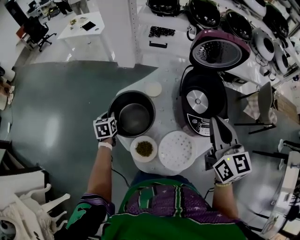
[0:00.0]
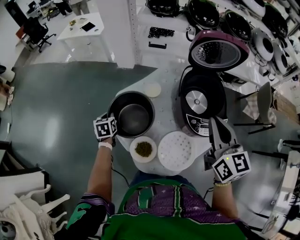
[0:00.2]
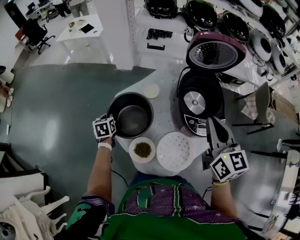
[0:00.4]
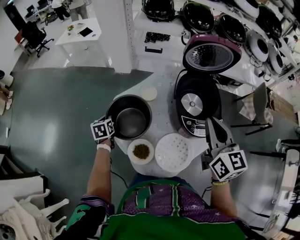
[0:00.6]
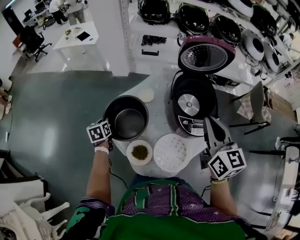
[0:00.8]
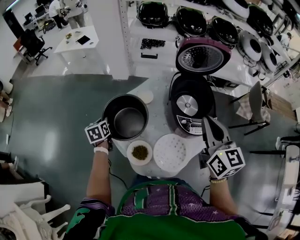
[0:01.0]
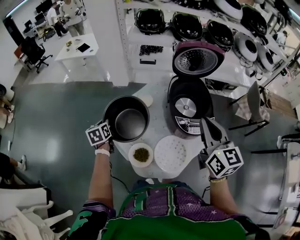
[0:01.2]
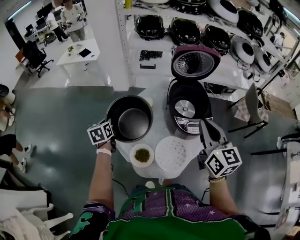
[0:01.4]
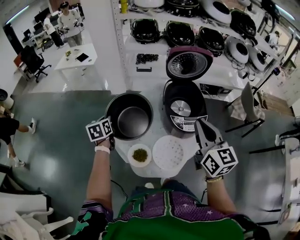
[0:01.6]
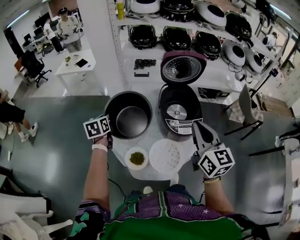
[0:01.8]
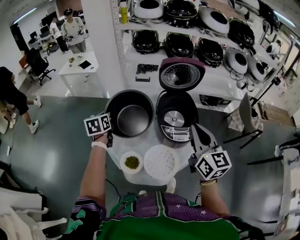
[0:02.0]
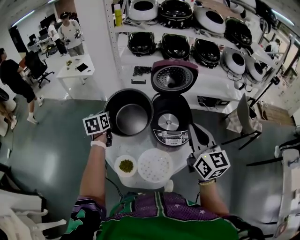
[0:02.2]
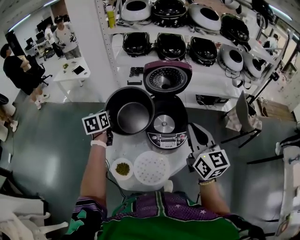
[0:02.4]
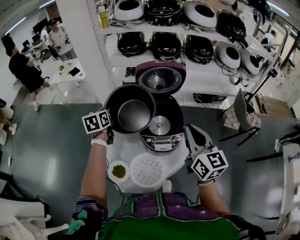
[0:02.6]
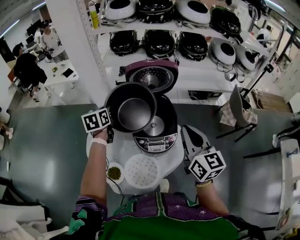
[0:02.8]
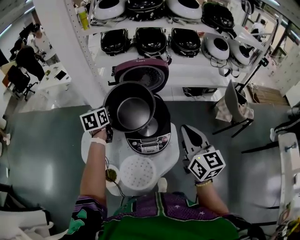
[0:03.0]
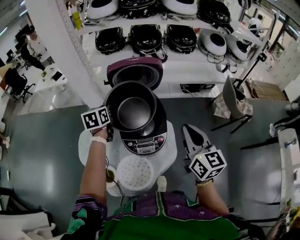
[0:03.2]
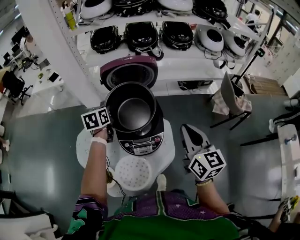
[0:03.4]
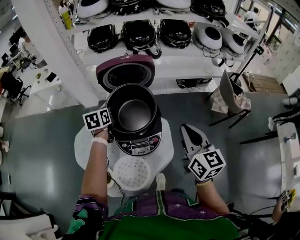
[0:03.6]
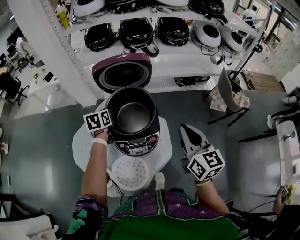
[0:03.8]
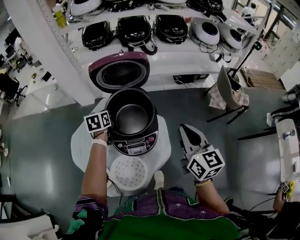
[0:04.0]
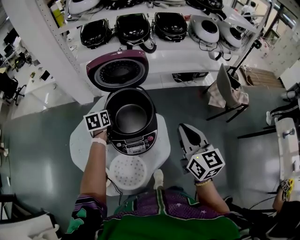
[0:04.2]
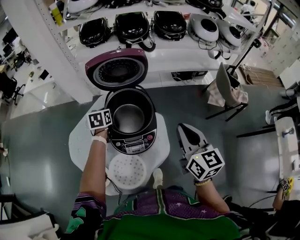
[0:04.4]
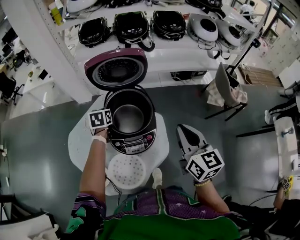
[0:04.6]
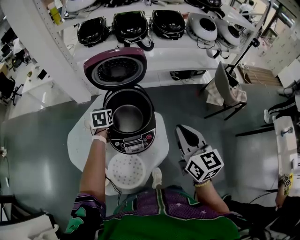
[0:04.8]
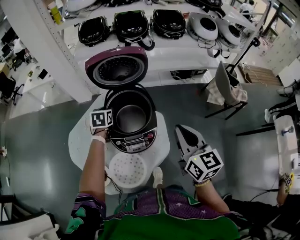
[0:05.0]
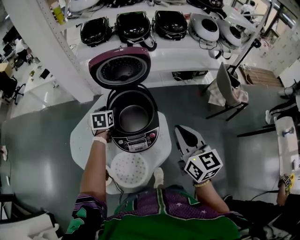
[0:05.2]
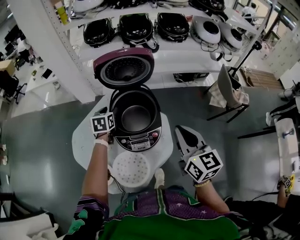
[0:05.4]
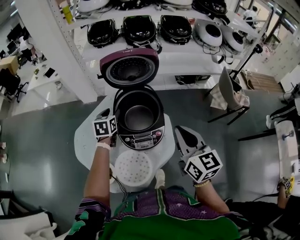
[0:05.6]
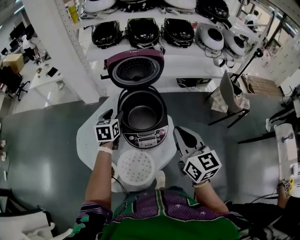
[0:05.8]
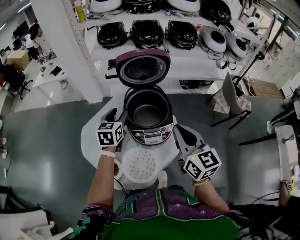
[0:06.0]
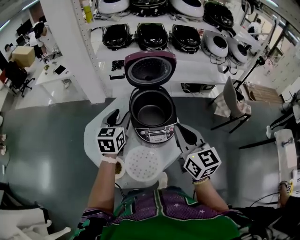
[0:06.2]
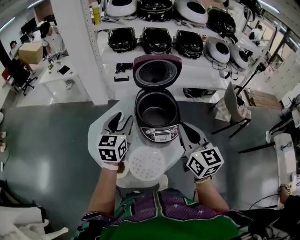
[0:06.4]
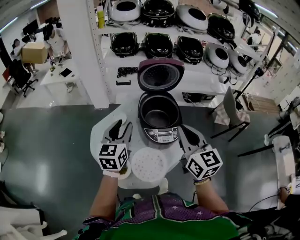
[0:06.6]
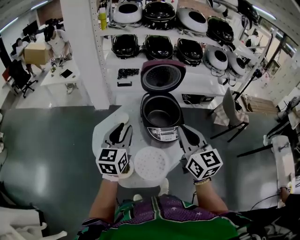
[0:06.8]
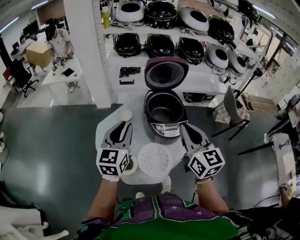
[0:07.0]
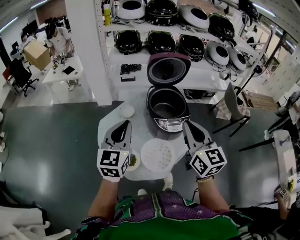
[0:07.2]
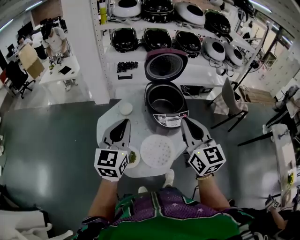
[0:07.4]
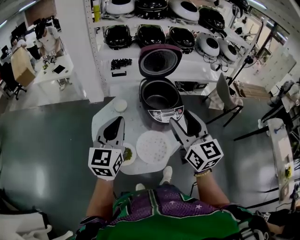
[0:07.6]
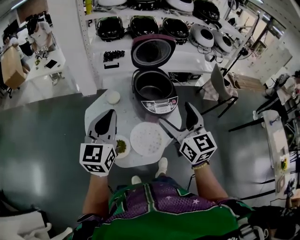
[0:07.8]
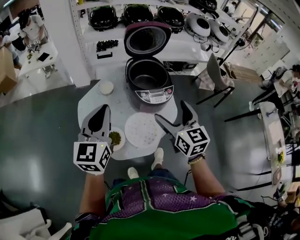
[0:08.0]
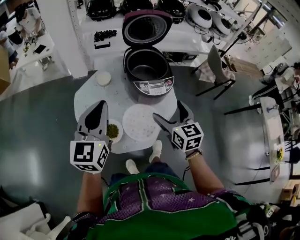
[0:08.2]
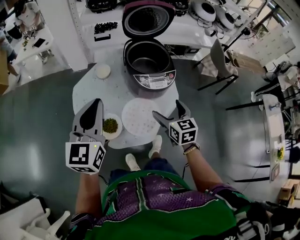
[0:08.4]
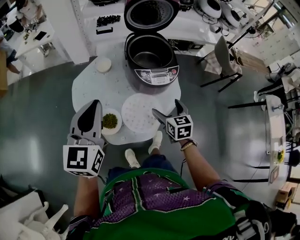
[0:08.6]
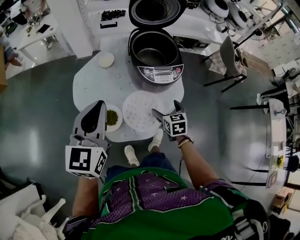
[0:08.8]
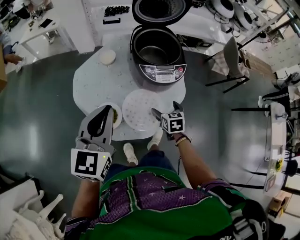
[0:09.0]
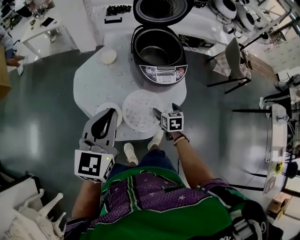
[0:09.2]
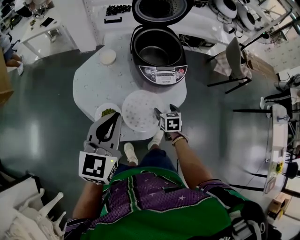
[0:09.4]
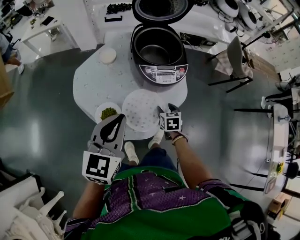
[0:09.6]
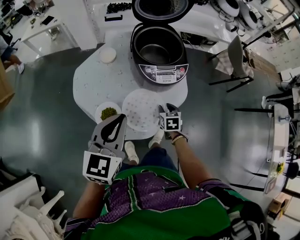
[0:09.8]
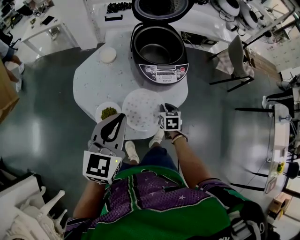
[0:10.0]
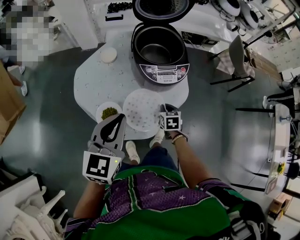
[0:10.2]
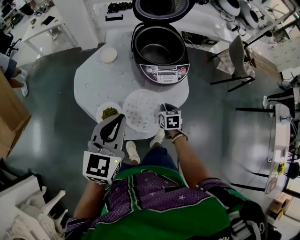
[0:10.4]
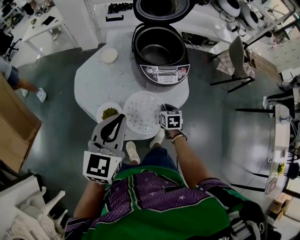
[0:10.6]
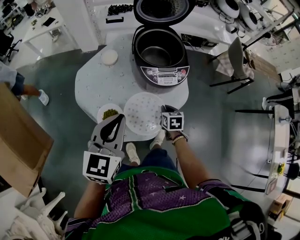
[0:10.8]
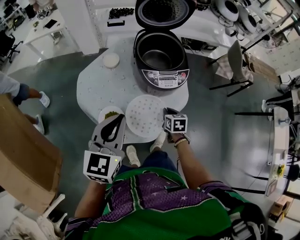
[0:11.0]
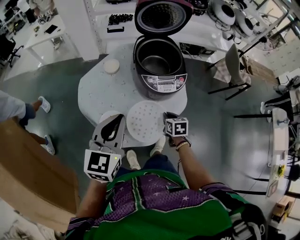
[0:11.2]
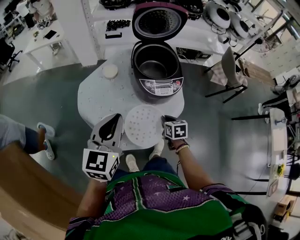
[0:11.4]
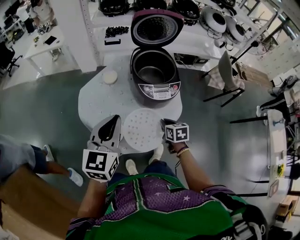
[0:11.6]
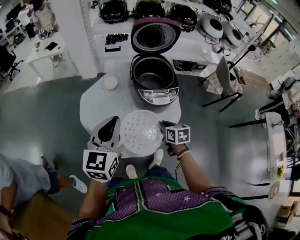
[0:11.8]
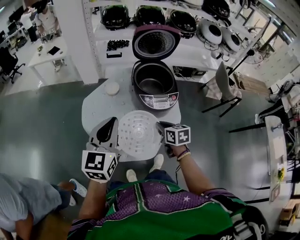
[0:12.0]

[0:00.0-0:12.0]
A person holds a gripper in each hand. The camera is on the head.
0:00.0 to 0:01.6: The right gripper travels backward by approximately 10 cm. Meanwhile the left gripper heads upward, covering approximately 15 cm.
0:01.6 to 0:03.0: The right gripper heads to the right, covering some 20 cm, while the left gripper is displaced to the right and forward by some 30 cm.
0:03.0 to 0:04.4: The right gripper moves to the right, some 5 cm. Meanwhile the left gripper heads downward and to the right, covering about 15 cm.
0:04.4 to 0:06.0: The left gripper shifts about 15 cm backward and upward, and opens, while the right gripper heads to the left, covering approximately 10 cm.
0:06.0 to 0:07.6: The left gripper travels backward, upward and to the left by some 30 cm, rotates approximately 30 degrees, and closes, while the right gripper heads to the left, backward and upward, covering roughly 20 cm, and opens.
0:07.6 to 0:09.0: The left gripper is displaced downward by roughly 10 cm; the right gripper goes roughly 40 cm downward, points its fingers about 40 degrees further downward, and opens up.
0:09.0 to 0:10.4: The right gripper travels downward by about 5 cm, and closes its fingers. Meanwhile the left gripper ends up some 5 cm from where it was.
0:10.4 to 0:12.0: The left gripper goes roughly 10 cm upward, while the right gripper shifts approximately 15 cm upward.

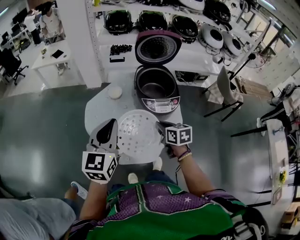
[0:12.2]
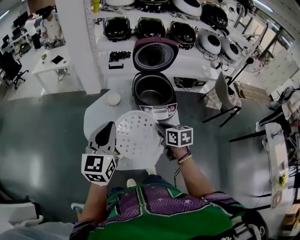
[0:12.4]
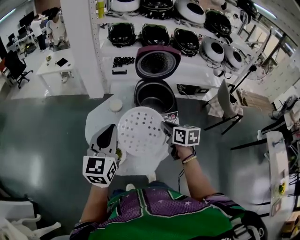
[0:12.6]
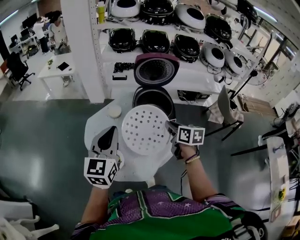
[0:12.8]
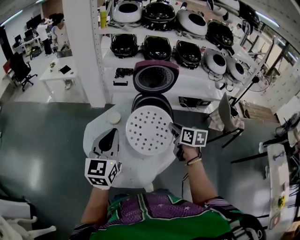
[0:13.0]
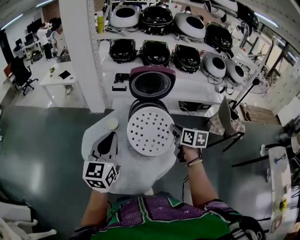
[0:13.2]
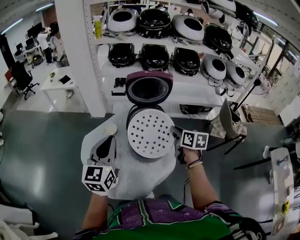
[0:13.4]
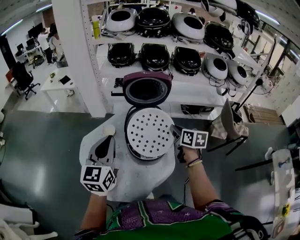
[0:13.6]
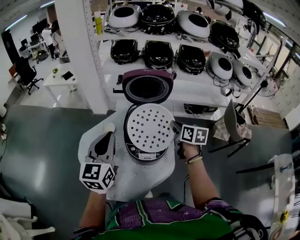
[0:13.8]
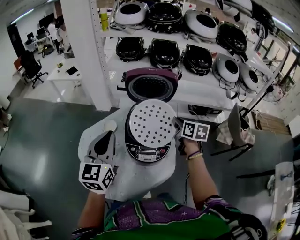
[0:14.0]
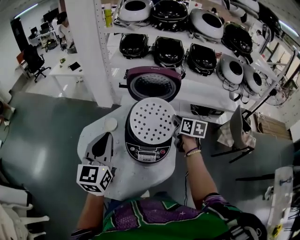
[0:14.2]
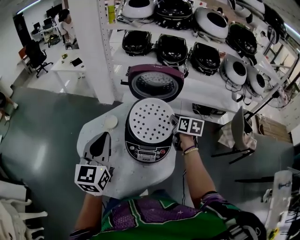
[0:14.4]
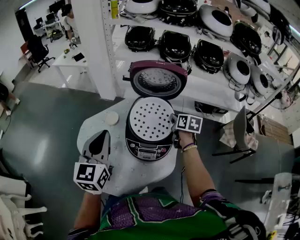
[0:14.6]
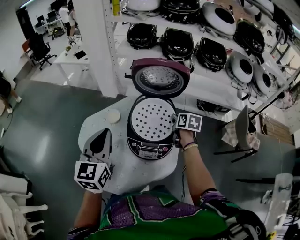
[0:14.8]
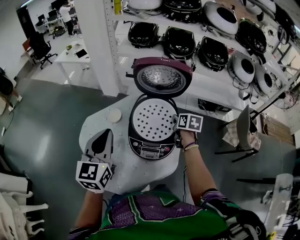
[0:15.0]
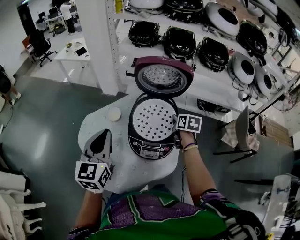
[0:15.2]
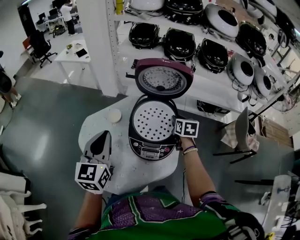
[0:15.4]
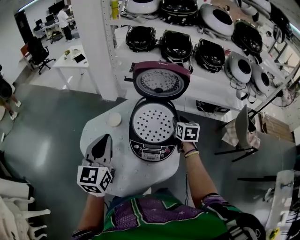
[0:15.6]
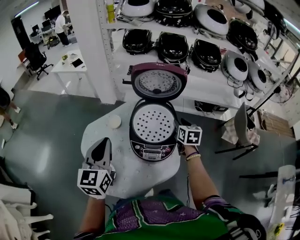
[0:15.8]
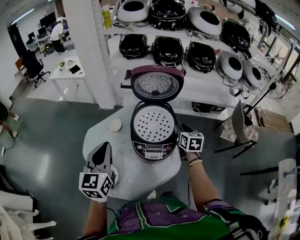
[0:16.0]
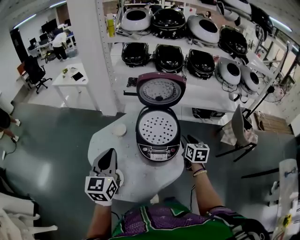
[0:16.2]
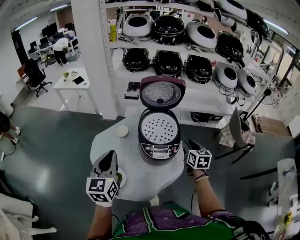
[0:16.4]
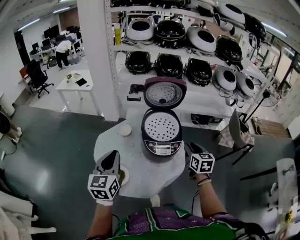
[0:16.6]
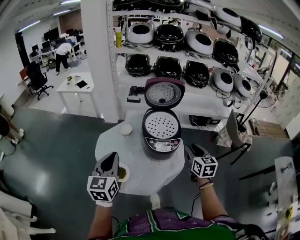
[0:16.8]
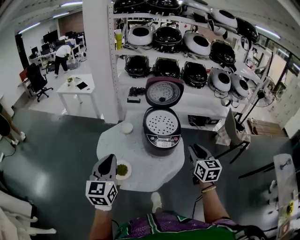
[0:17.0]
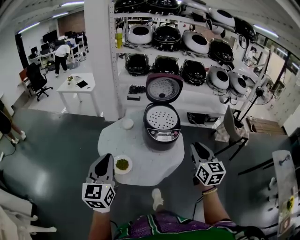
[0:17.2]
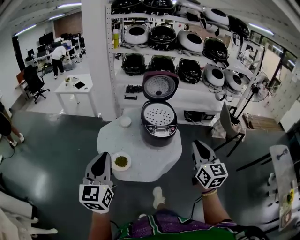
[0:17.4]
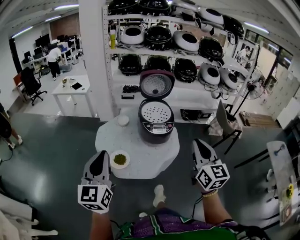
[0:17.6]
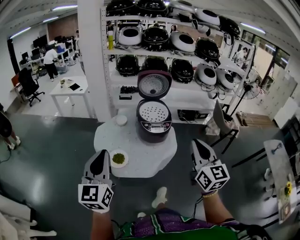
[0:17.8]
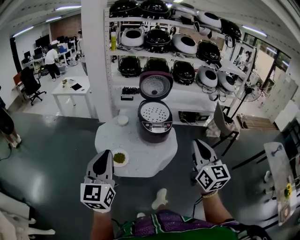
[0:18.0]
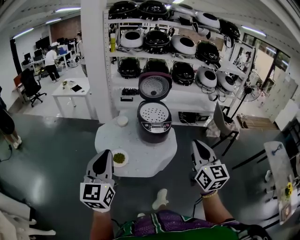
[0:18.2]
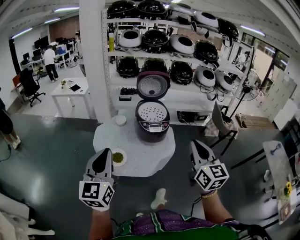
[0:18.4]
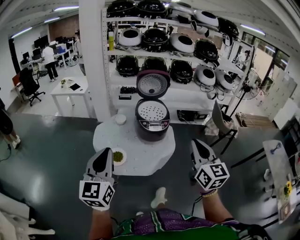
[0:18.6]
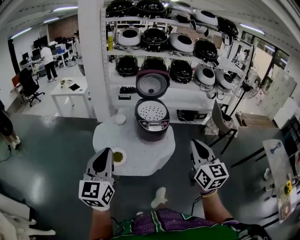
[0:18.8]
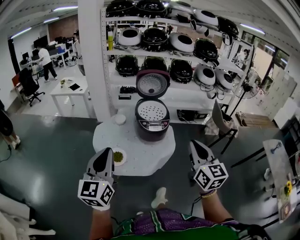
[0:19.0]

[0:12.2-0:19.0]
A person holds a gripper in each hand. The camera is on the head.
0:12.2 to 0:13.6: The left gripper is displaced forward and to the right by about 15 cm, while the right gripper is displaced to the right, forward and upward by approximately 30 cm.
0:13.6 to 0:15.0: The left gripper changes place by approximately 5 cm, while the right gripper heads forward and downward, covering some 15 cm.
0:15.0 to 0:16.2: The left gripper is displaced backward and to the left by approximately 10 cm. The right gripper goes roughly 15 cm backward.
0:16.2 to 0:17.6: The right gripper goes roughly 50 cm backward and upward, and angles its fingers upward, by about 30 degrees. The left gripper is displaced backward by roughly 30 cm.
0:17.6 to 0:19.0: The grippers make only small movements.

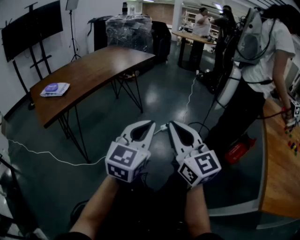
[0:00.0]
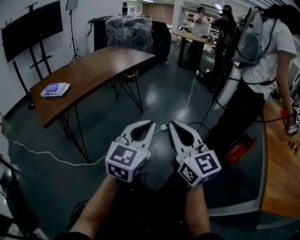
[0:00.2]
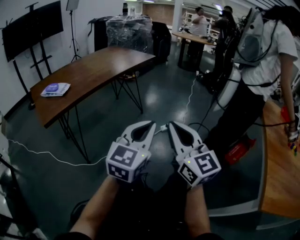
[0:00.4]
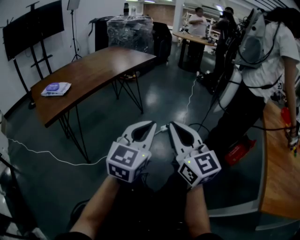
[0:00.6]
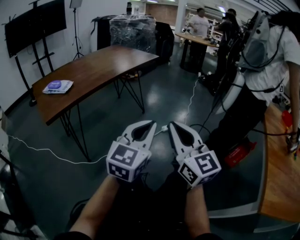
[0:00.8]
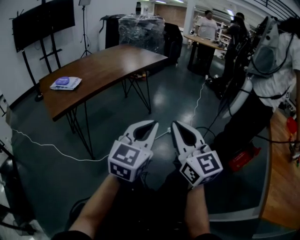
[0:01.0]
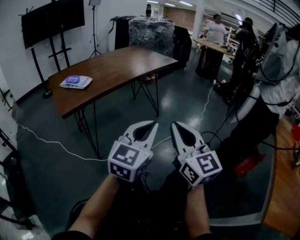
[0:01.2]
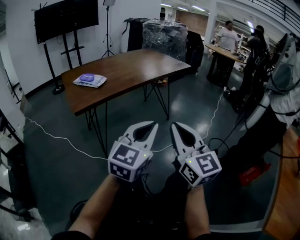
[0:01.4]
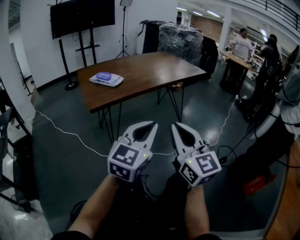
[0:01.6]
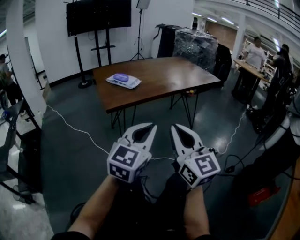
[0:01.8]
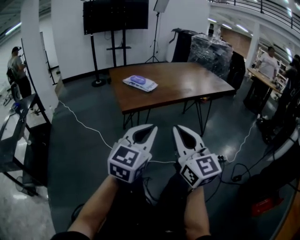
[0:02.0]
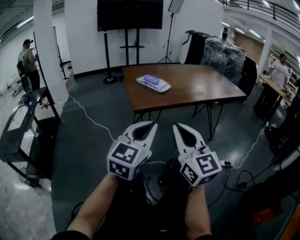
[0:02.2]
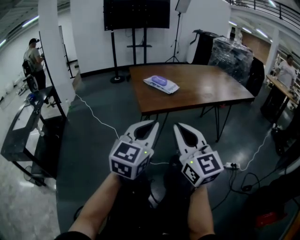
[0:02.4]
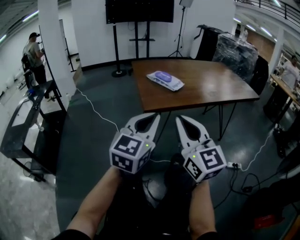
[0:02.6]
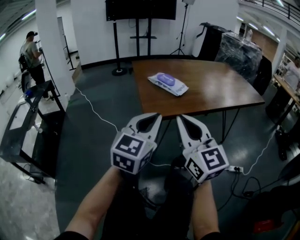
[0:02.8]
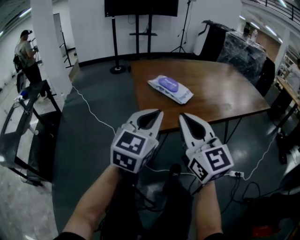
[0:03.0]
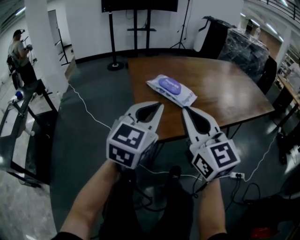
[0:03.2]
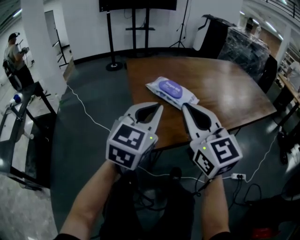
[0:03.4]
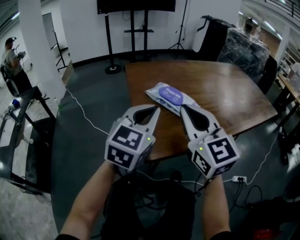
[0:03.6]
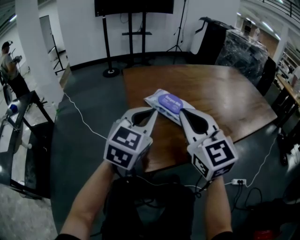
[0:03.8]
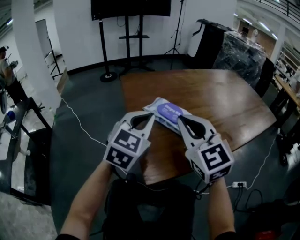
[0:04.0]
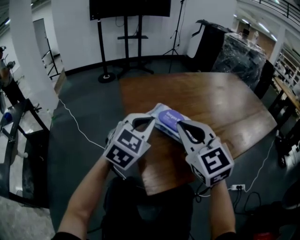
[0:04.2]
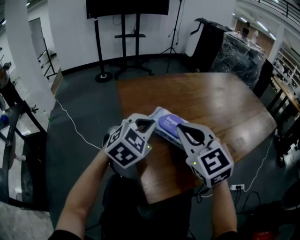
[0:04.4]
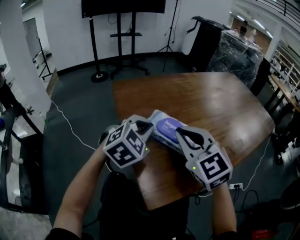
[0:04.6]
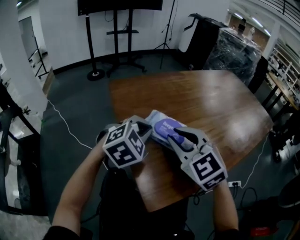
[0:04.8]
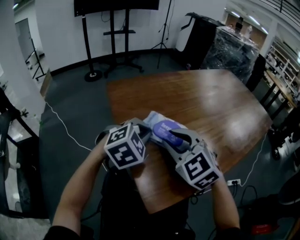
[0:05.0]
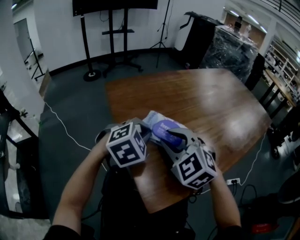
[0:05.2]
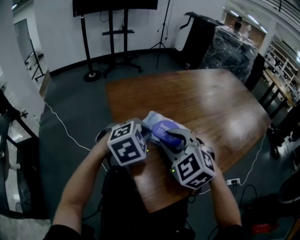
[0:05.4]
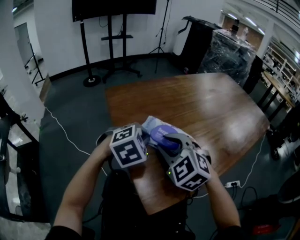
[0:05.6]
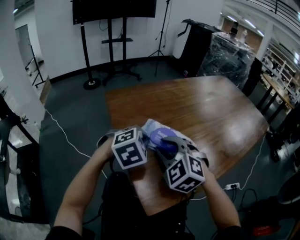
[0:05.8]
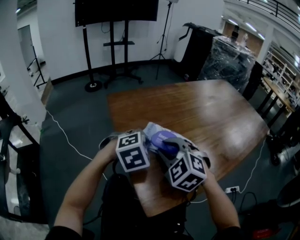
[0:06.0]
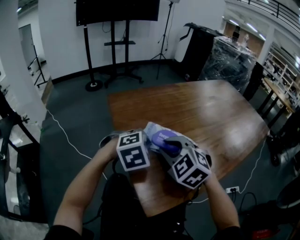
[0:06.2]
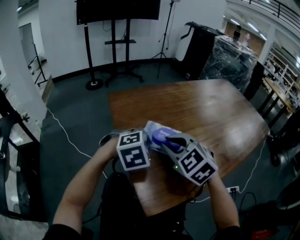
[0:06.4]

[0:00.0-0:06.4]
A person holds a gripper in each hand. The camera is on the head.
0:00.0 to 0:01.6: Both grippers travel together to the left, some 15 cm.
0:01.6 to 0:03.2: The two grippers go some 35 cm forward and to the left. The right gripper rotates some 20 degrees. The left gripper turns by roughly 20 degrees.
0:03.2 to 0:04.8: The left gripper moves forward and downward, some 20 cm, and tilts its fingers approximately 30 degrees downward. Meanwhile the right gripper goes about 20 cm forward, and rotates some 30 degrees.
